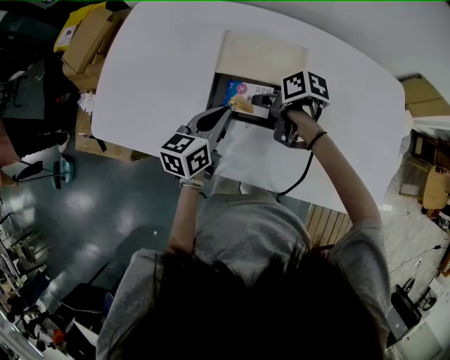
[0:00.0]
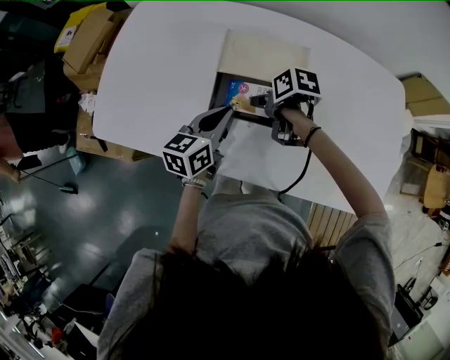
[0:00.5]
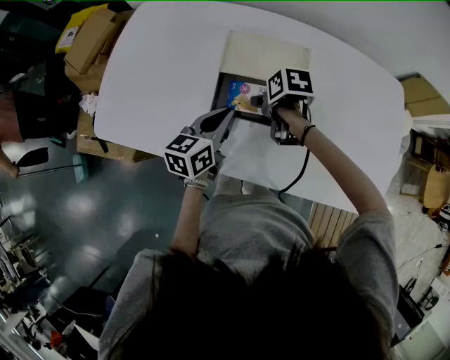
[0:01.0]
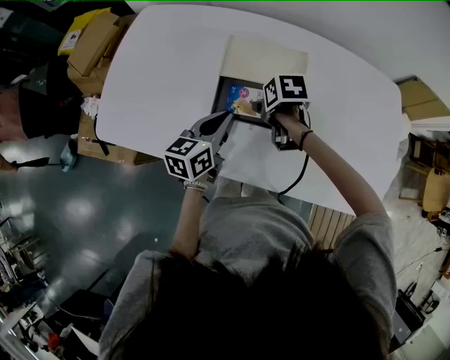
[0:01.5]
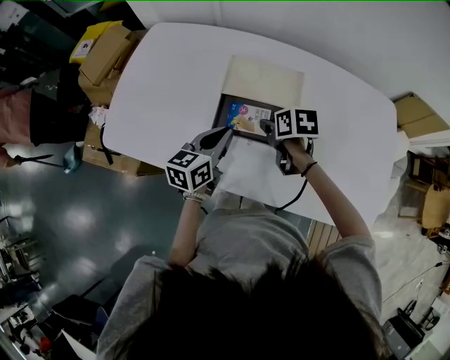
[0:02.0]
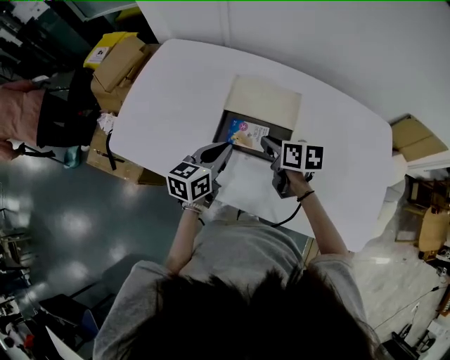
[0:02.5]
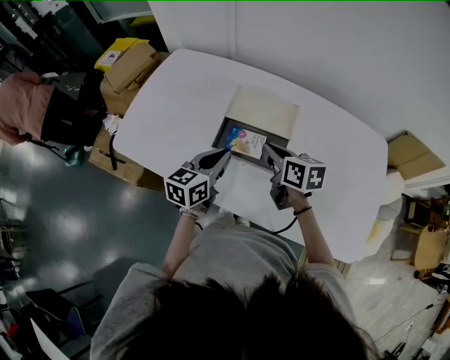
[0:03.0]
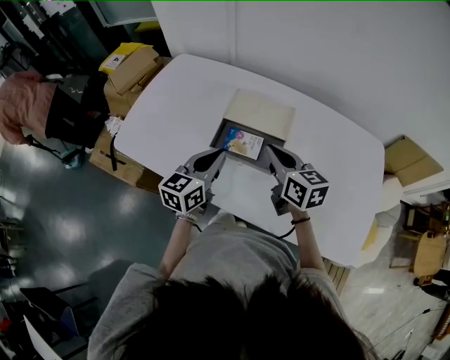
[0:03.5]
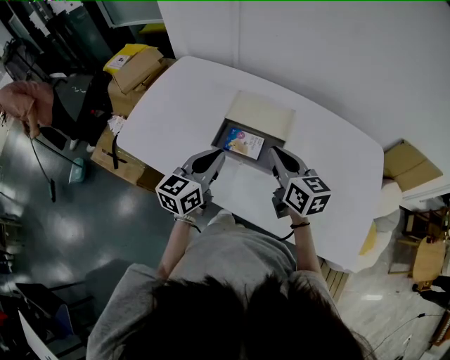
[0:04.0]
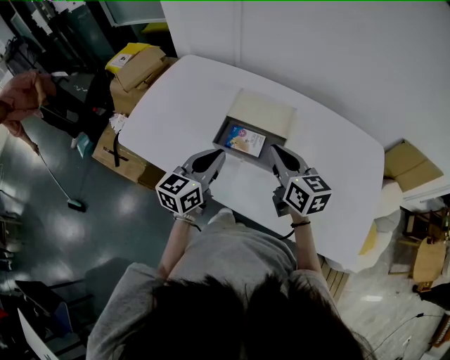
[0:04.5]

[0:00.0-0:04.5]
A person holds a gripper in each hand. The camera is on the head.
0:00.0 to 0:02.0: The right gripper swivels approximately 30 degrees.
0:02.0 to 0:04.5: The right gripper moves upward and backward, some 20 cm, tips its fingers upward by approximately 40 degrees, and closes; the left gripper travels upward and backward by some 10 cm.

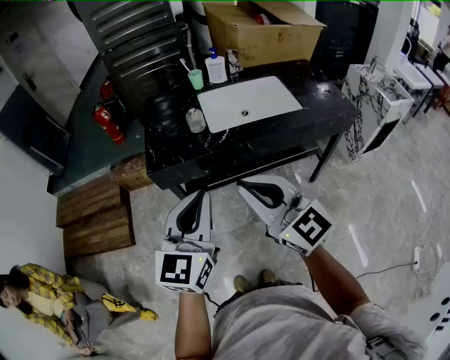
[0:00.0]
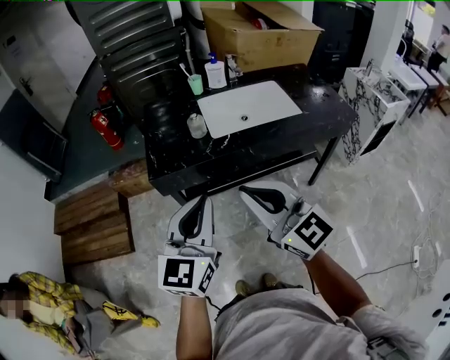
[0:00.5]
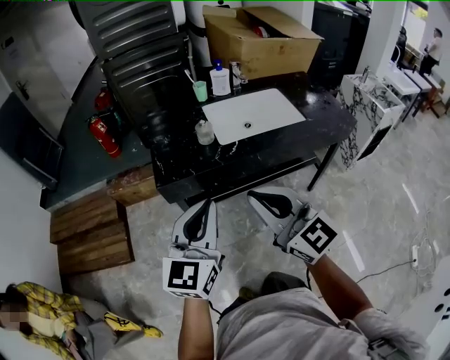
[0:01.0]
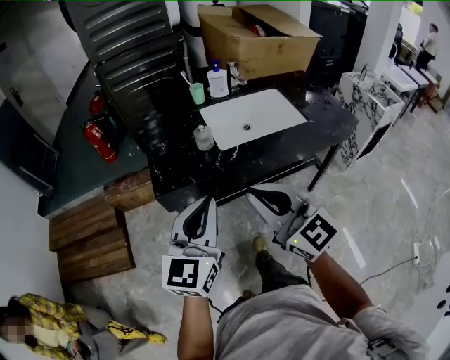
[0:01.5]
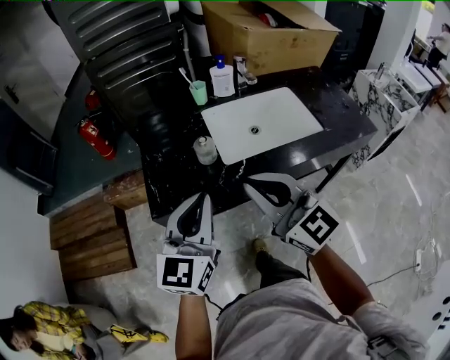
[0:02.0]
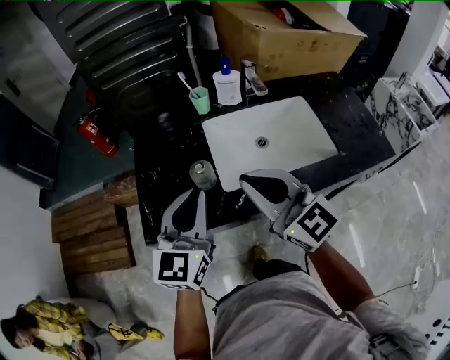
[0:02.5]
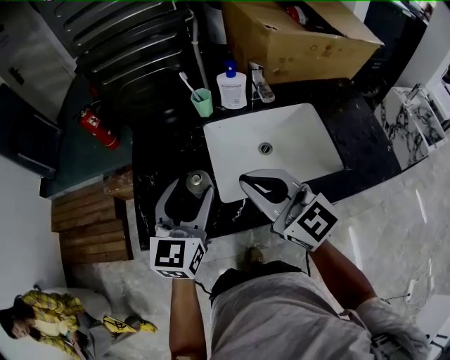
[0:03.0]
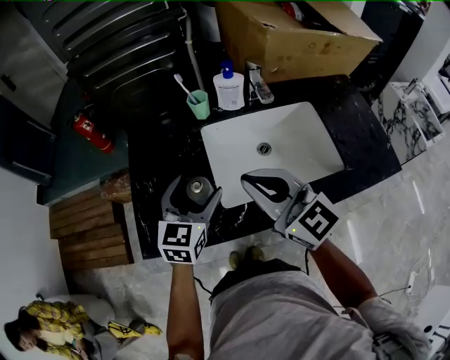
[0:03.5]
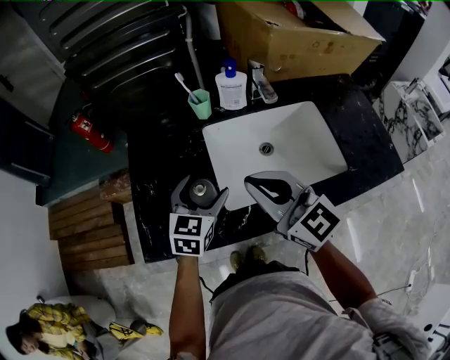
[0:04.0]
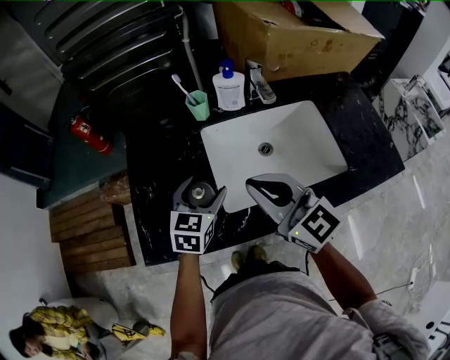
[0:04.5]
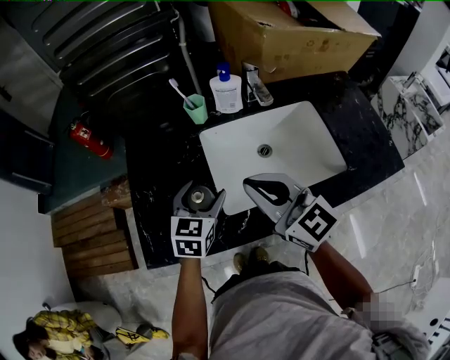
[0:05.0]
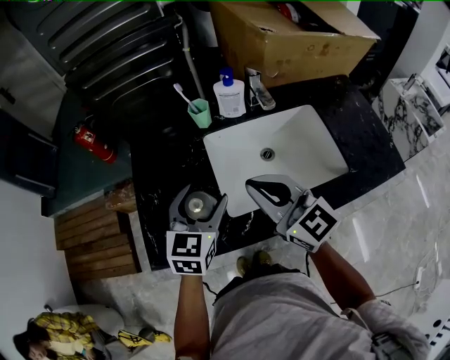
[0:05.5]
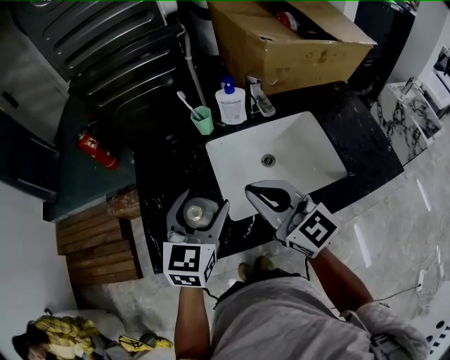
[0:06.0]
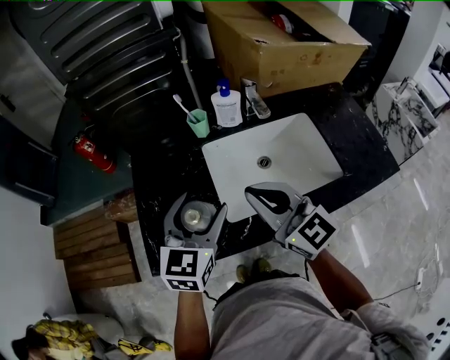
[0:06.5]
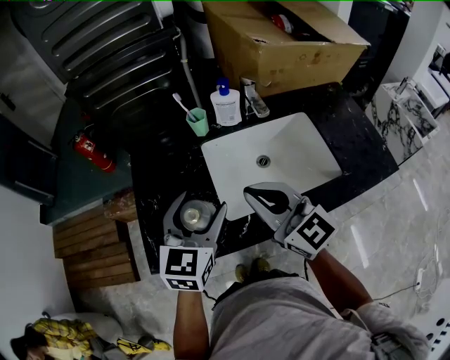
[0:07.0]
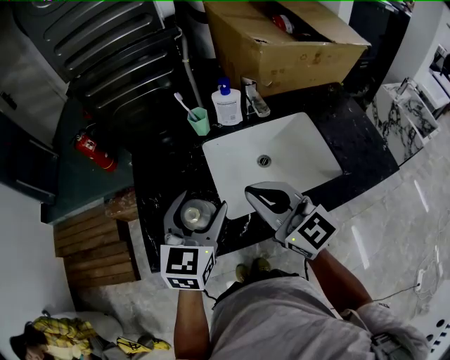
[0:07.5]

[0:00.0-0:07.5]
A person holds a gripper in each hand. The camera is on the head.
0:00.0 to 0:02.0: Both grippers move forward, some 20 cm.
0:02.0 to 0:04.0: The right gripper heads forward, covering approximately 20 cm, while the left gripper shifts some 30 cm forward and downward, changes its angle by roughly 30 degrees, and opens.
0:04.0 to 0:05.5: The left gripper is displaced upward by some 5 cm.
0:05.5 to 0:07.5: The left gripper goes some 5 cm upward.

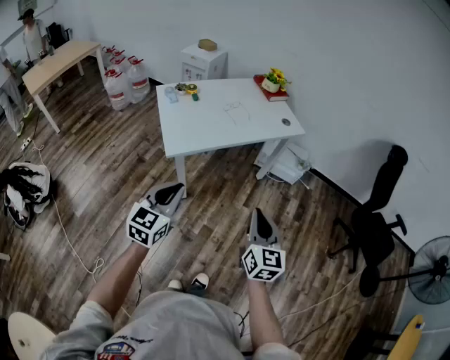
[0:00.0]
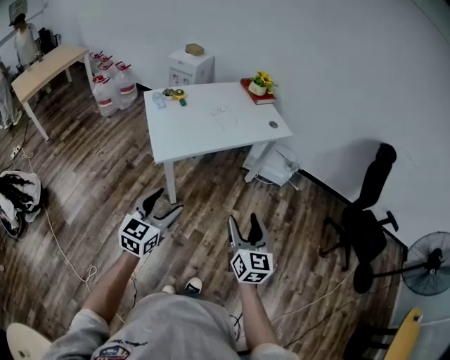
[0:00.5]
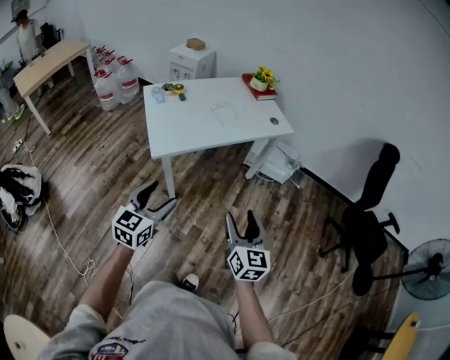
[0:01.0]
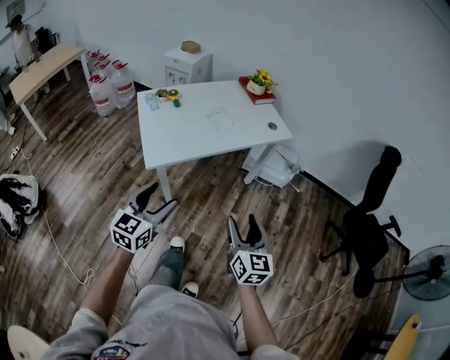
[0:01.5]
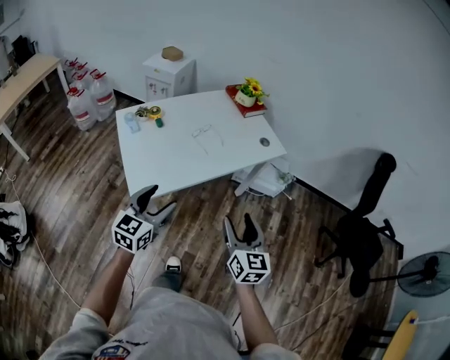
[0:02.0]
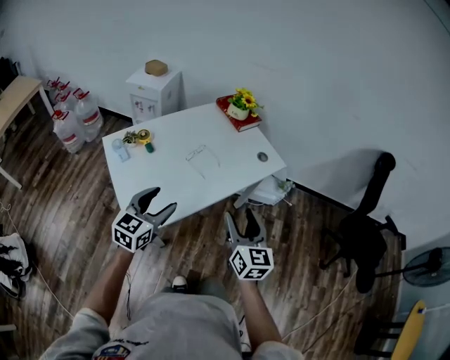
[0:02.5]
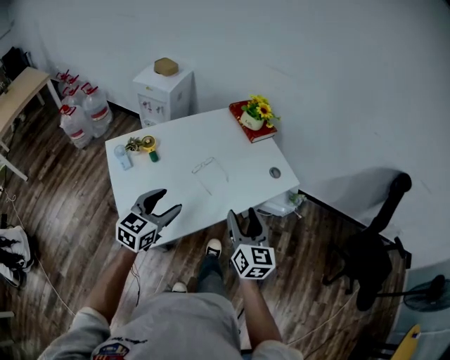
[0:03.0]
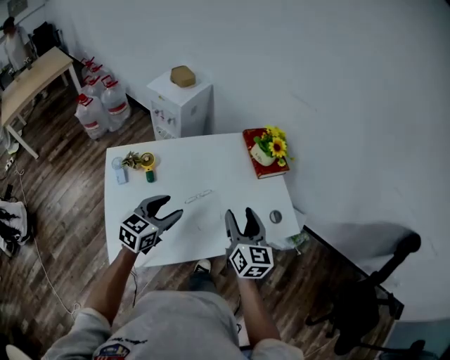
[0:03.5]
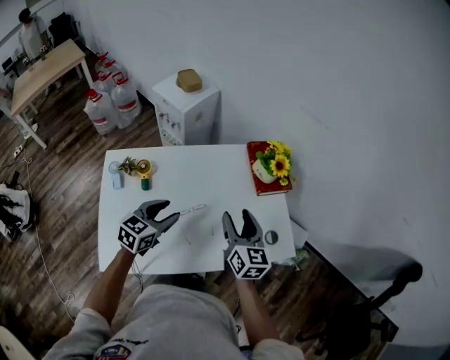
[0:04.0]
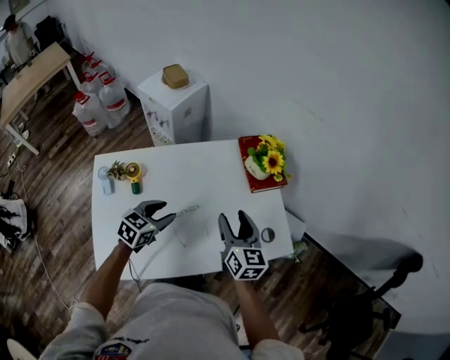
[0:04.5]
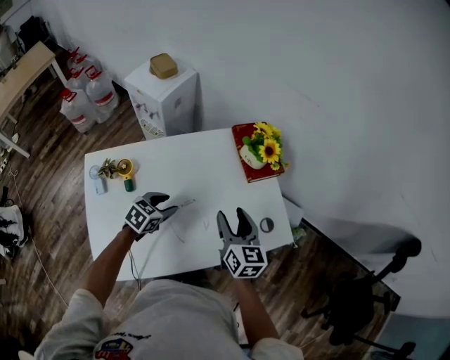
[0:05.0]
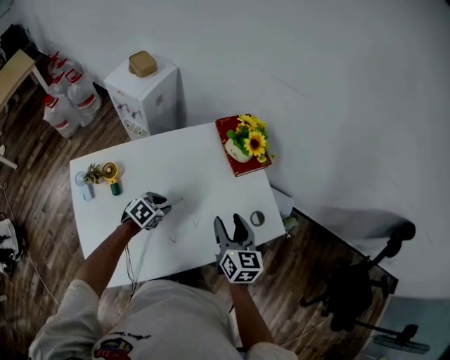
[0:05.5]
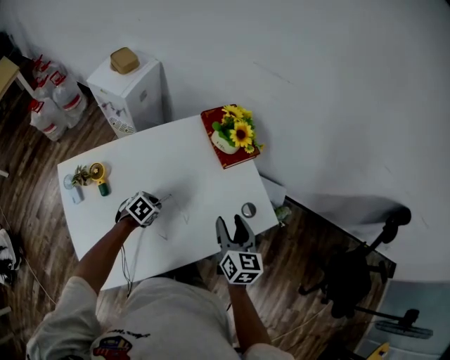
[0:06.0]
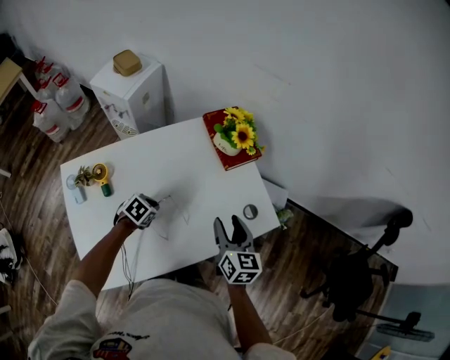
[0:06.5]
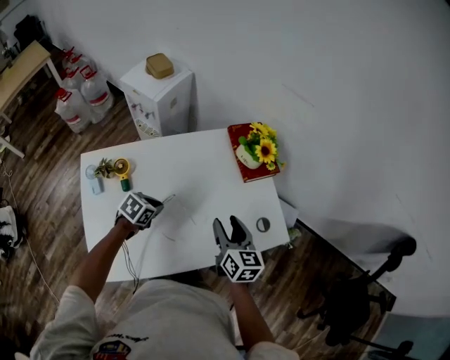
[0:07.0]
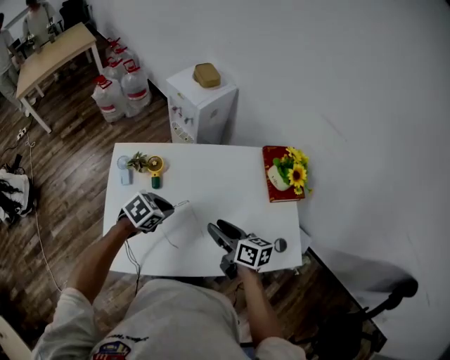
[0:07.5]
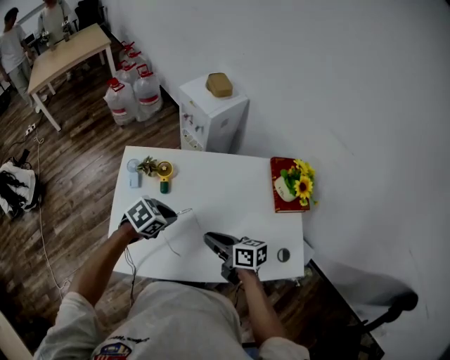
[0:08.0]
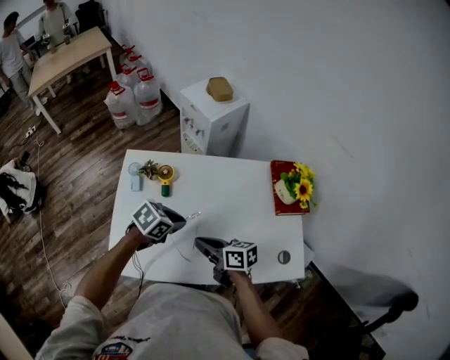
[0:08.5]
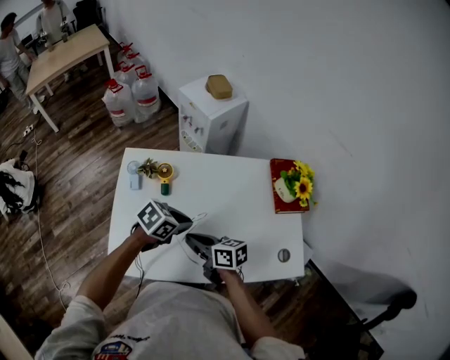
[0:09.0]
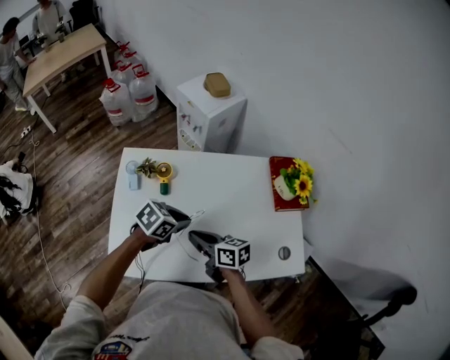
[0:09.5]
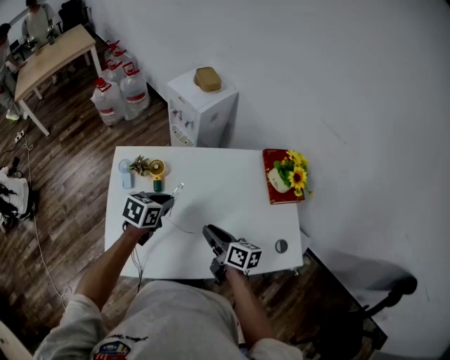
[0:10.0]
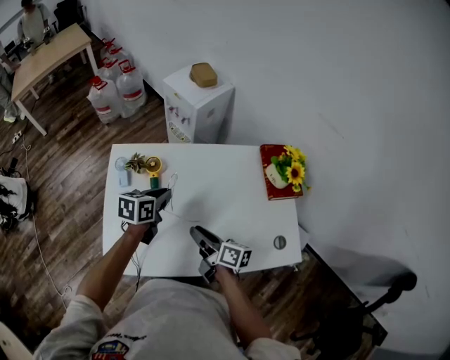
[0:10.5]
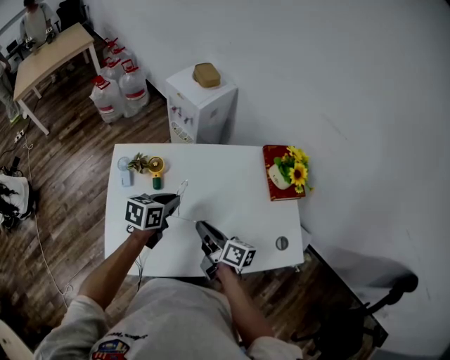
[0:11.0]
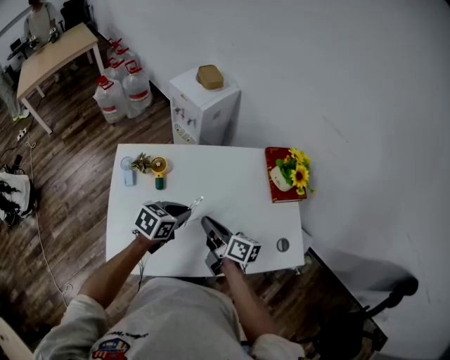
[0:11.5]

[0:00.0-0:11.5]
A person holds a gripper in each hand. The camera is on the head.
0:00.0 to 0:02.0: Both grippers move forward, about 25 cm. The right gripper opens its fingers; the left gripper opens up.
0:02.0 to 0:04.0: The two grippers travel together, forward, approximately 50 cm.
0:04.0 to 0:06.0: The right gripper shifts by some 10 cm, and changes its angle by approximately 20 degrees. Meanwhile the left gripper goes about 20 cm downward, angles its fingers downward, by roughly 40 degrees, and closes.
0:06.0 to 0:07.5: The left gripper heads upward, covering approximately 15 cm; the right gripper shifts by about 20 cm, and rotates roughly 50 degrees.
0:07.5 to 0:09.5: The right gripper shifts by approximately 10 cm, and closes up.
0:09.5 to 0:11.5: The right gripper ends up approximately 10 cm from where it was, turns by roughly 30 degrees, and opens, then closes once more.

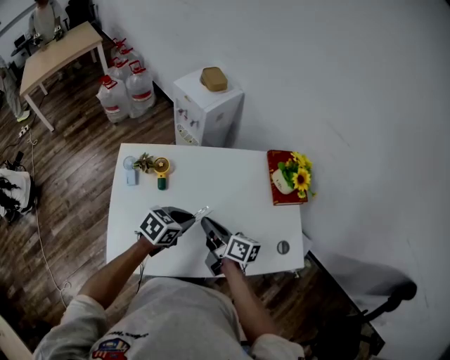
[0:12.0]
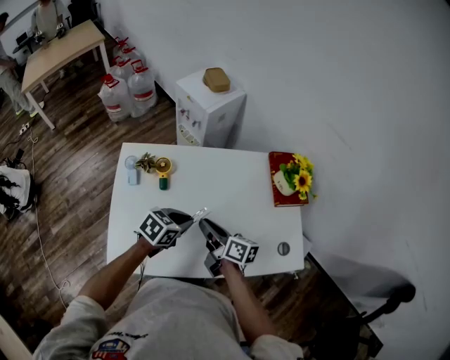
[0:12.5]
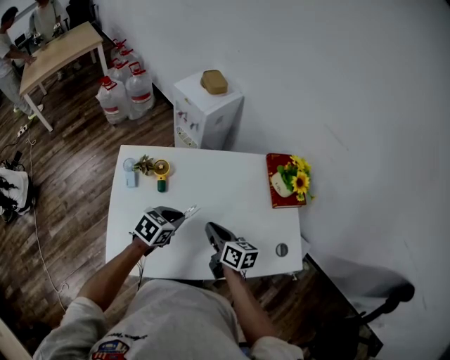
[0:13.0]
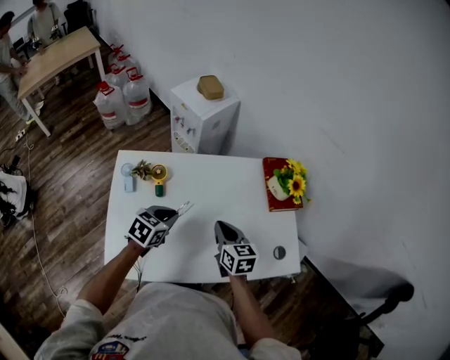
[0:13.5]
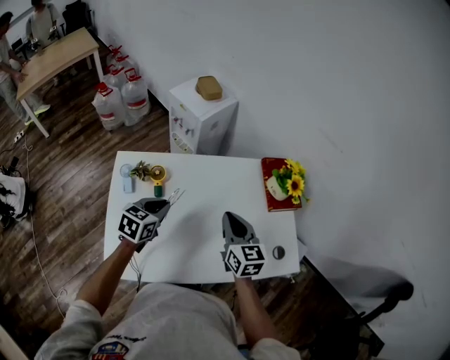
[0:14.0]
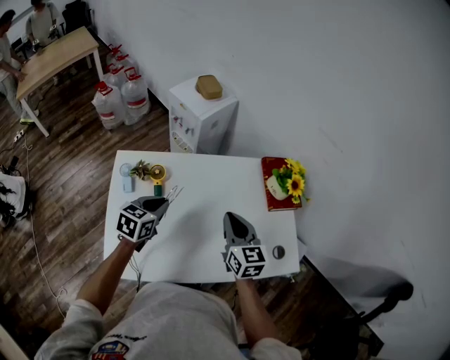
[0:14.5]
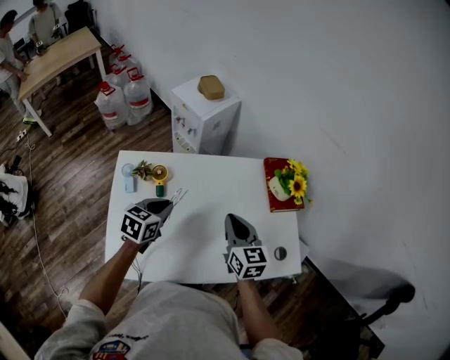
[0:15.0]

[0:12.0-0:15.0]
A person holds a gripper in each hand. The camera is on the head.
0:12.0 to 0:13.5: The left gripper moves to the left, some 5 cm. Meanwhile the right gripper shifts by approximately 5 cm, and swivels about 40 degrees.
0:13.5 to 0:15.0: The right gripper shifts some 5 cm upward. Meanwhile the left gripper shifts by approximately 5 cm.
